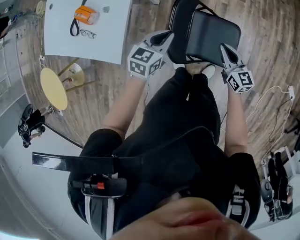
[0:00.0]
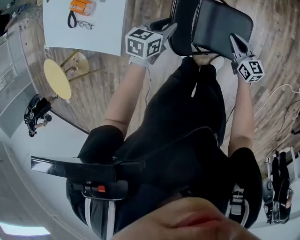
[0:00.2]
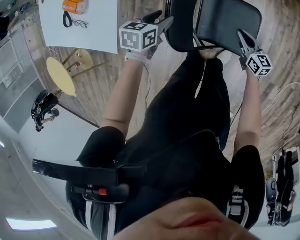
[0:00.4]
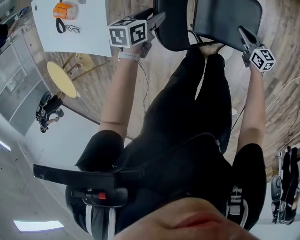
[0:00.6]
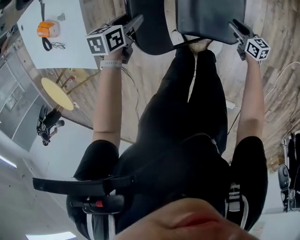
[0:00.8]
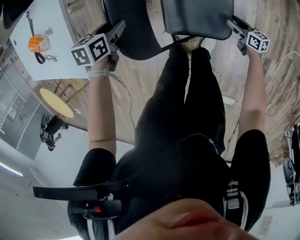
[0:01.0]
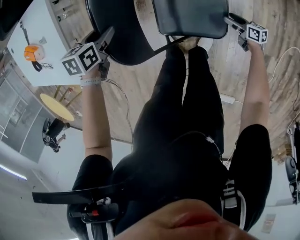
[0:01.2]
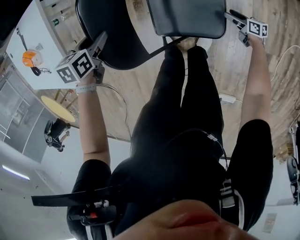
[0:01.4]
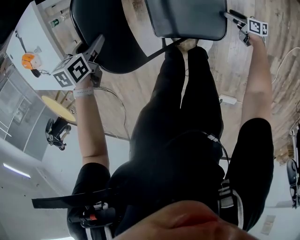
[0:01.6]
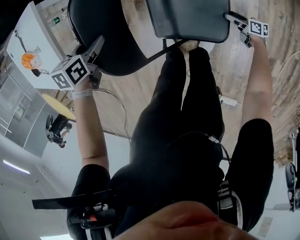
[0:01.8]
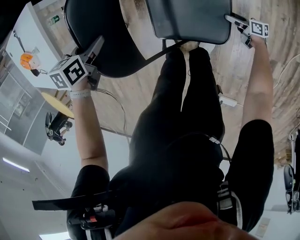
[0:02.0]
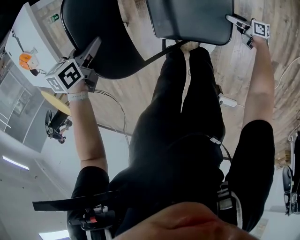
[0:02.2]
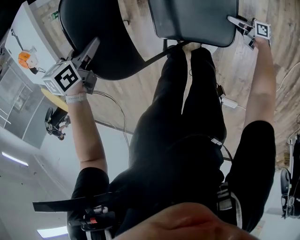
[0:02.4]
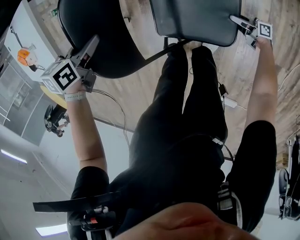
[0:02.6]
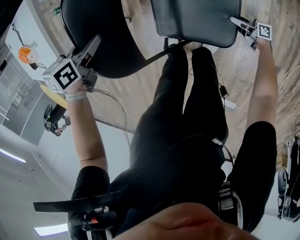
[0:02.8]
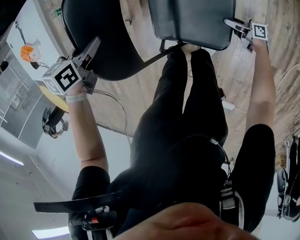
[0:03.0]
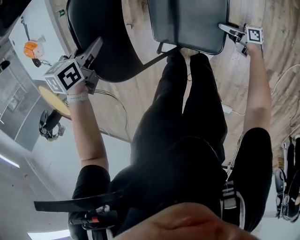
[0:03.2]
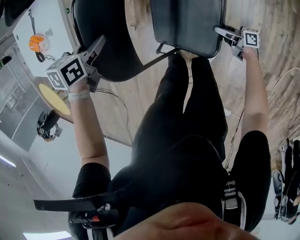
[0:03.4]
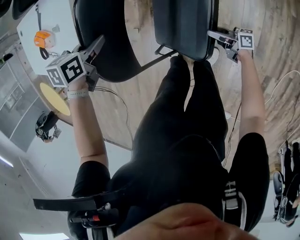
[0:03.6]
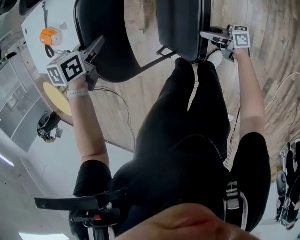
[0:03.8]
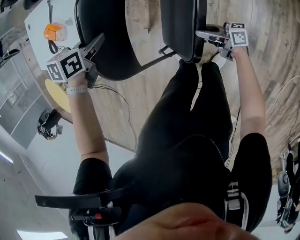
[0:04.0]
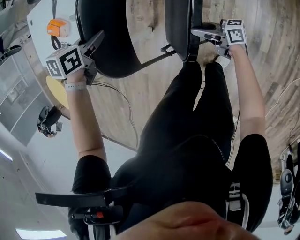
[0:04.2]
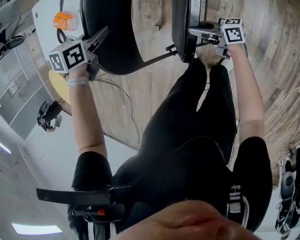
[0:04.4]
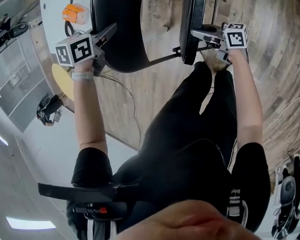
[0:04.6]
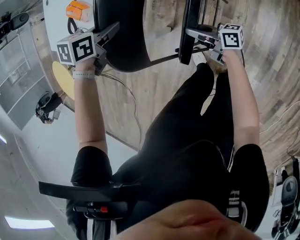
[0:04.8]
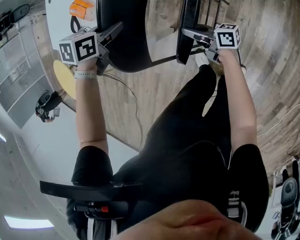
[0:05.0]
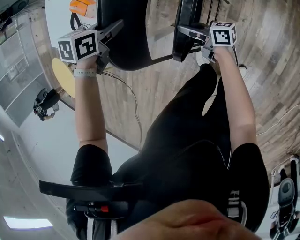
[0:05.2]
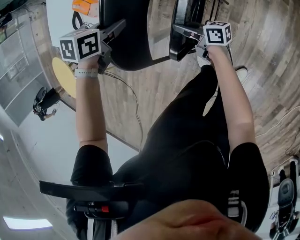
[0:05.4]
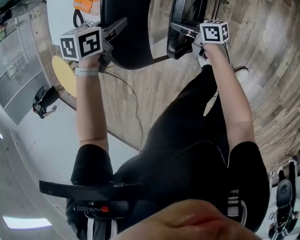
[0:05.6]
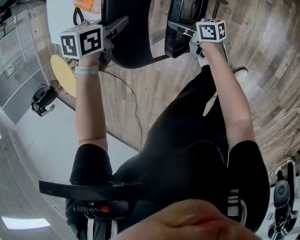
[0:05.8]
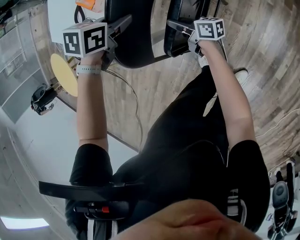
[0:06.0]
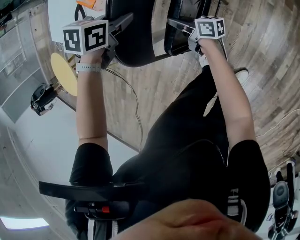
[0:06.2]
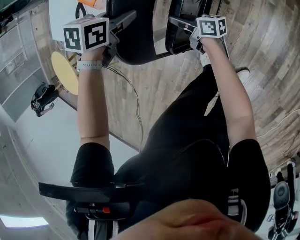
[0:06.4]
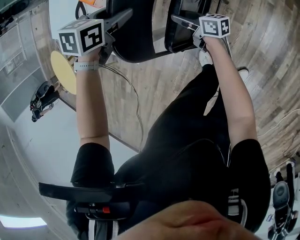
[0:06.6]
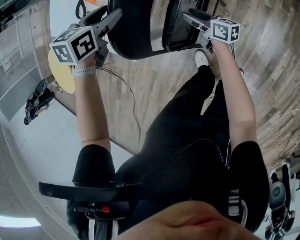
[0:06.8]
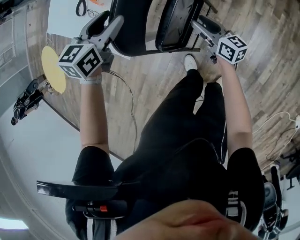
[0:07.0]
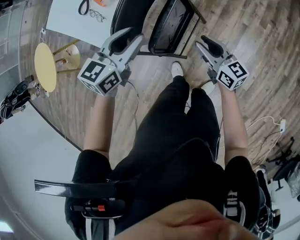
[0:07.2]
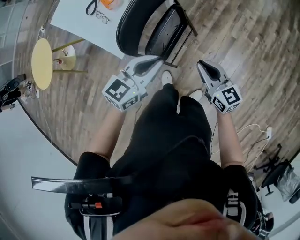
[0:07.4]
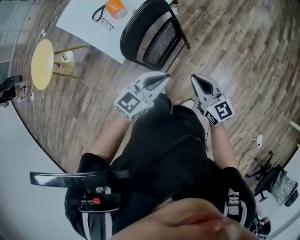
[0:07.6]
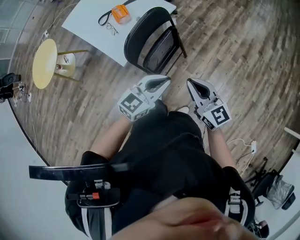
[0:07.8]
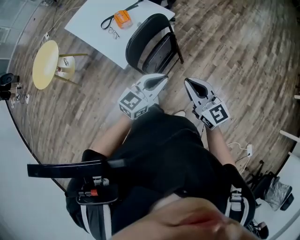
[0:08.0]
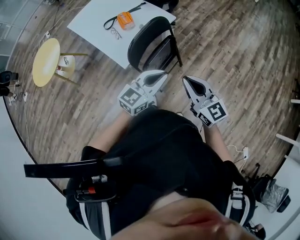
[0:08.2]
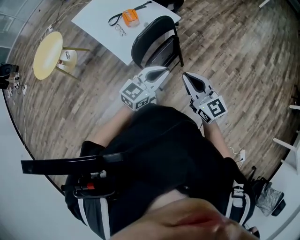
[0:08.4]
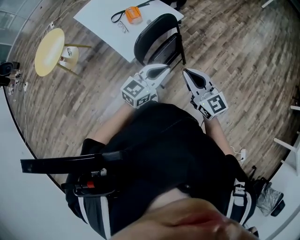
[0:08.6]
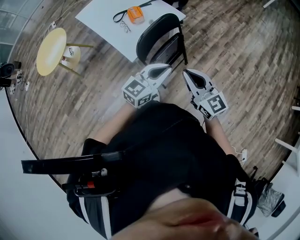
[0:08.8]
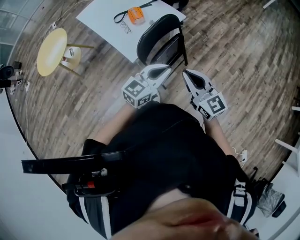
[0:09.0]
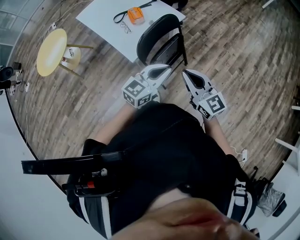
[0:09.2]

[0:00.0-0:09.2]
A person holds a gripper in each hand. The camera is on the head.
0:00.0 to 0:01.6: The right gripper shifts roughly 50 cm downward and to the right, rotates around the line of its fingers by approximately 40 degrees, clockwise from behind, and opens, while the left gripper is displaced downward by about 20 cm, tips its fingers downward by approximately 30 degrees, and opens its fingers.
0:01.6 to 0:03.0: The left gripper closes its fingers. The right gripper travels to the left by approximately 5 cm, and changes its angle by about 30 degrees.
0:03.0 to 0:04.6: The left gripper shifts by approximately 20 cm, while the right gripper ends up some 50 cm from where it was, changes its angle by approximately 20 degrees, and closes up.
0:04.6 to 0:06.2: The left gripper changes place by some 5 cm; the right gripper changes place by some 20 cm.
0:06.2 to 0:07.6: The right gripper goes approximately 40 cm upward, backward and to the right, twists roughly 60 degrees counterclockwise, seen from behind, and opens, then closes again, while the left gripper goes roughly 40 cm backward, upward and to the right, tips its fingers upward by some 50 degrees, and opens, then closes once more.
0:07.6 to 0:09.2: The left gripper is displaced upward by roughly 10 cm; the right gripper travels upward and to the left by roughly 15 cm.

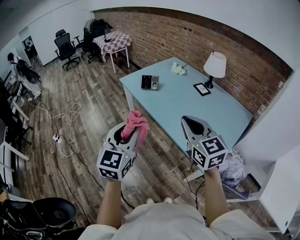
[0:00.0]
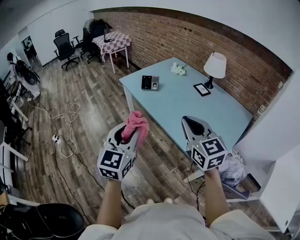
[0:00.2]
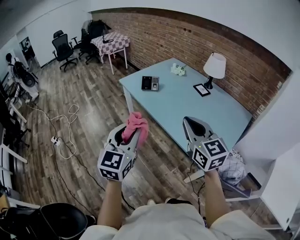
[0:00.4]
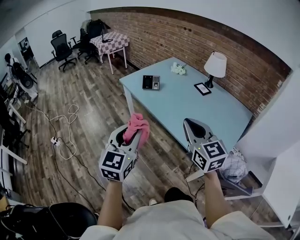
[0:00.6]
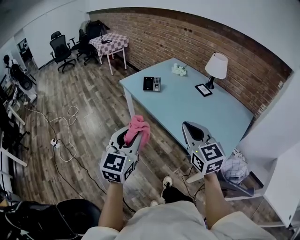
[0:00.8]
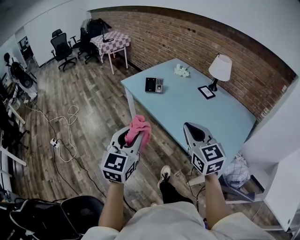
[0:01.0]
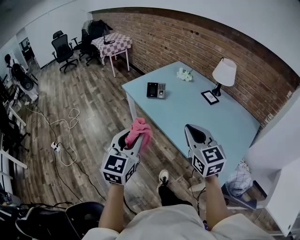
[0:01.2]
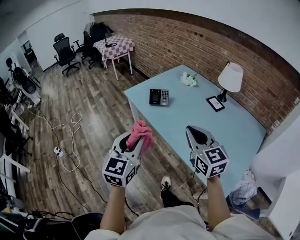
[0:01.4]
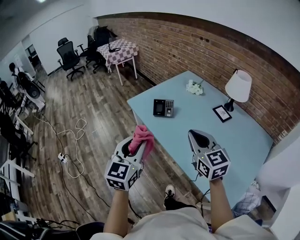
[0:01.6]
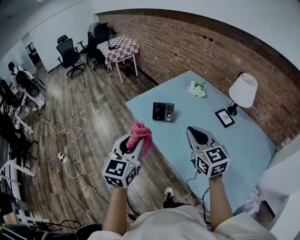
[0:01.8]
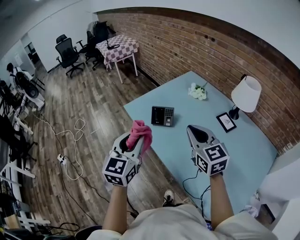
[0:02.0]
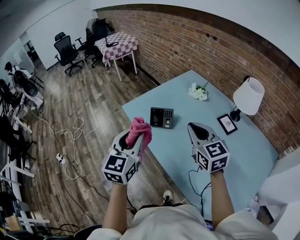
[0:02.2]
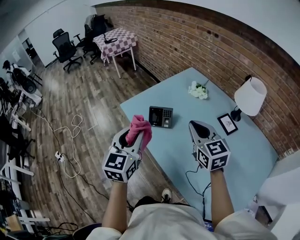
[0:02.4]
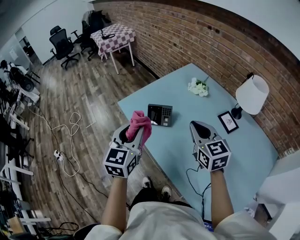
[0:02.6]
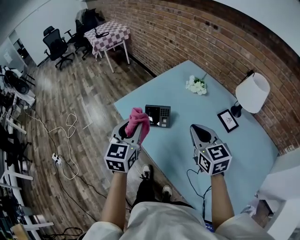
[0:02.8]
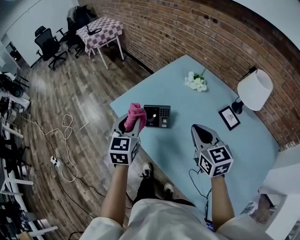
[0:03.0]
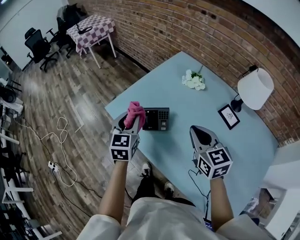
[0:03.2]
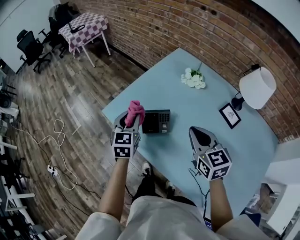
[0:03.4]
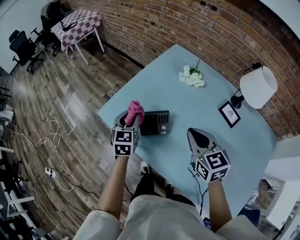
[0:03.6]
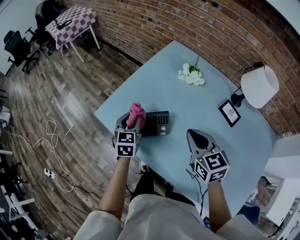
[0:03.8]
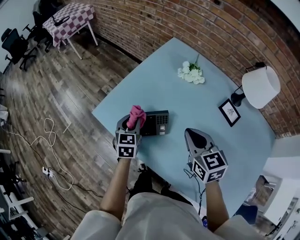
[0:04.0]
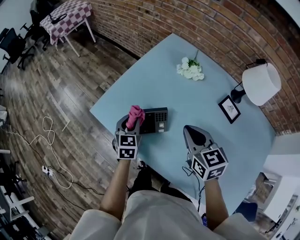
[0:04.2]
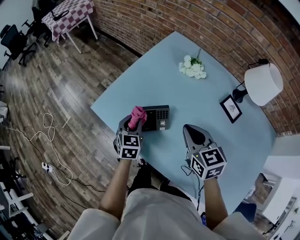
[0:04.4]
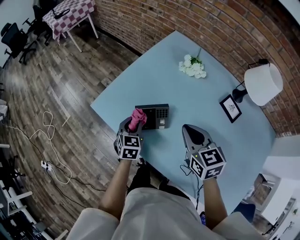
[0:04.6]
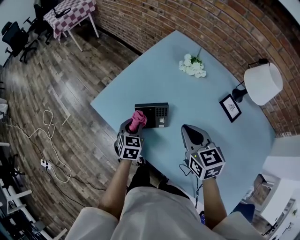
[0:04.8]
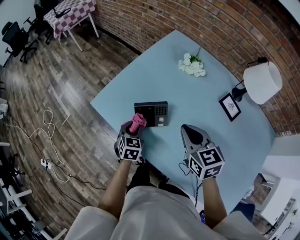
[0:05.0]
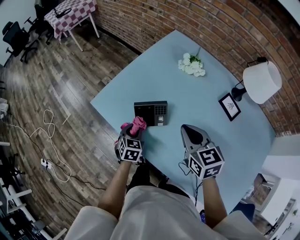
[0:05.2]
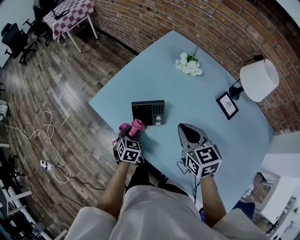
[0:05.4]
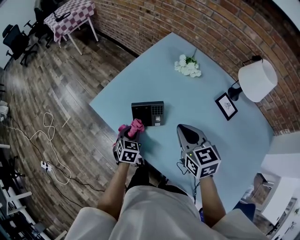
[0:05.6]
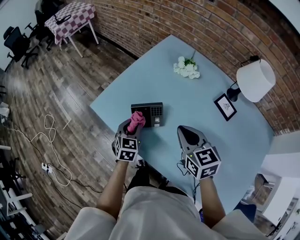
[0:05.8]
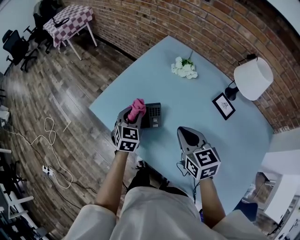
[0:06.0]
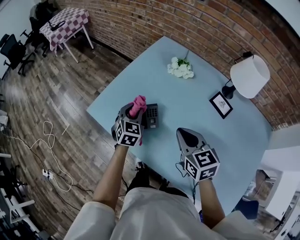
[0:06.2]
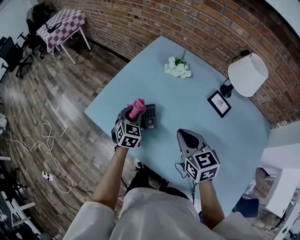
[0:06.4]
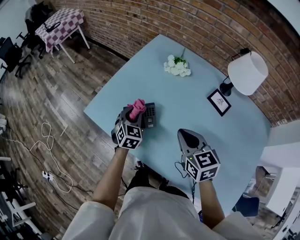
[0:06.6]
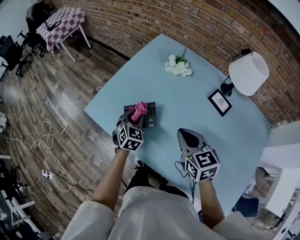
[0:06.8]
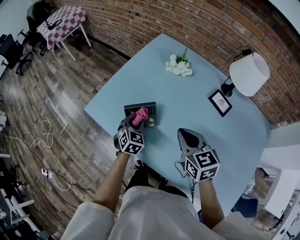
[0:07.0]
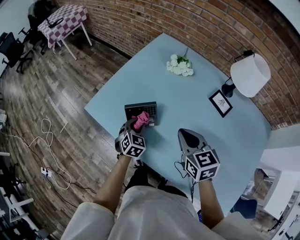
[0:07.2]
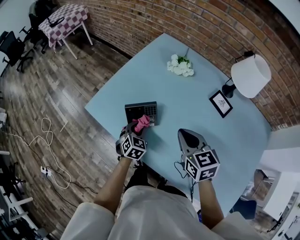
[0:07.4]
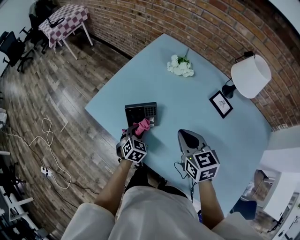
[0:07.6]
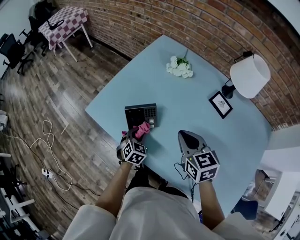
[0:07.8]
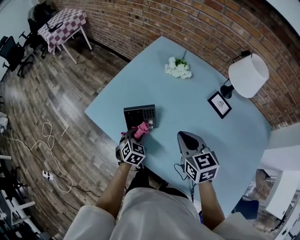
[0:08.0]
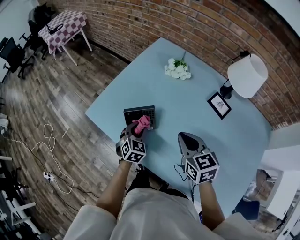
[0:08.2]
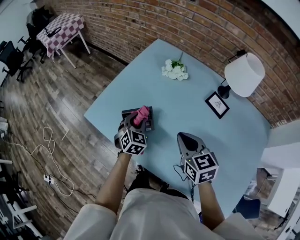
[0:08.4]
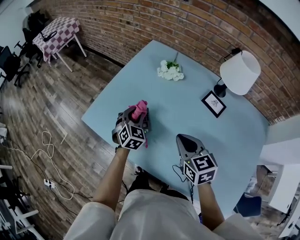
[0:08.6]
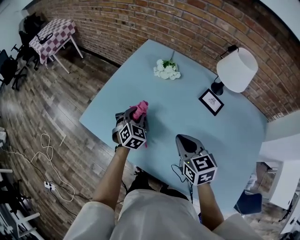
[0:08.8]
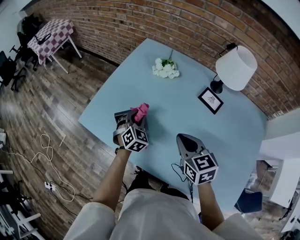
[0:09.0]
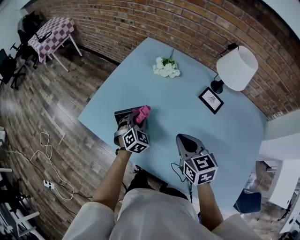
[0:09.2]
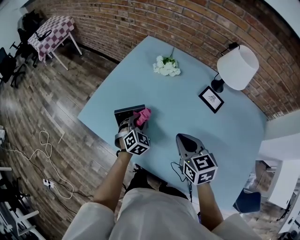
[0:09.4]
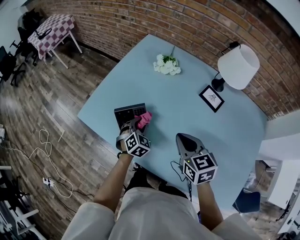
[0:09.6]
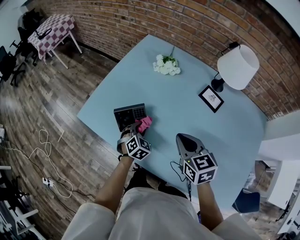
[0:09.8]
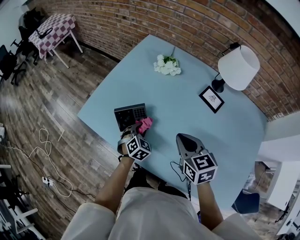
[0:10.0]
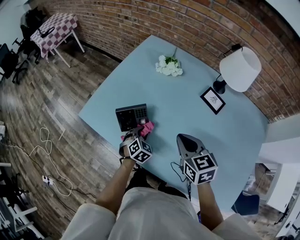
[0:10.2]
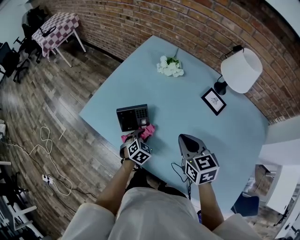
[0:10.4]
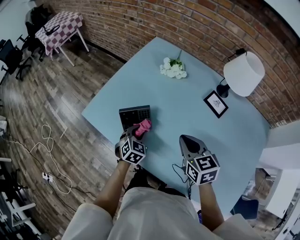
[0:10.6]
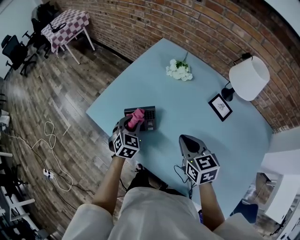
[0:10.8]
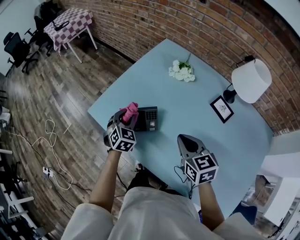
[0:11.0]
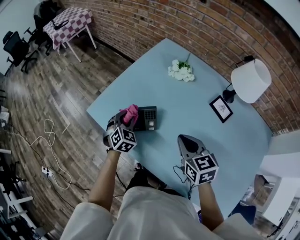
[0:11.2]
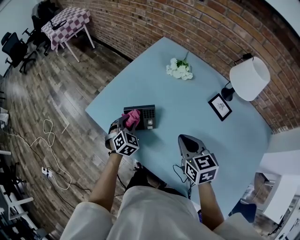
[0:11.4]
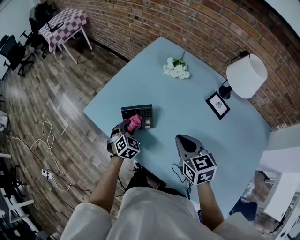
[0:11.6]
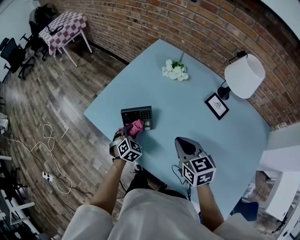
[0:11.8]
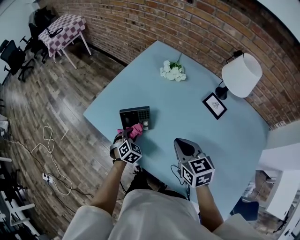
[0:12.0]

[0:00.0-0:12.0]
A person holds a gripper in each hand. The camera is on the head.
0:00.0 to 0:01.6: The two grippers go about 25 cm forward.
0:01.6 to 0:03.0: The grippers both shift forward by approximately 30 cm.
0:03.0 to 0:04.4: The left gripper heads downward and forward, covering roughly 25 cm, and changes its angle by about 20 degrees, while the right gripper is displaced forward and downward by some 10 cm.
0:04.4 to 0:06.0: The left gripper moves upward, roughly 5 cm.
0:06.0 to 0:07.6: The left gripper heads downward and backward, covering about 15 cm.
0:07.6 to 0:09.0: The left gripper goes about 15 cm upward, forward and to the right.
0:09.0 to 0:10.4: The left gripper is displaced downward and backward by about 15 cm.
0:10.4 to 0:12.0: The left gripper moves to the left, some 5 cm.

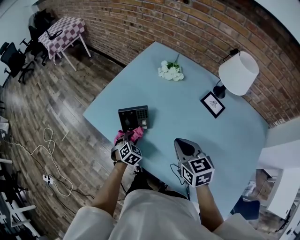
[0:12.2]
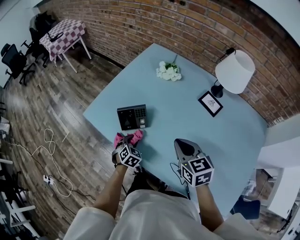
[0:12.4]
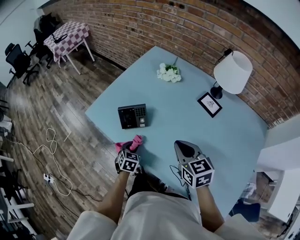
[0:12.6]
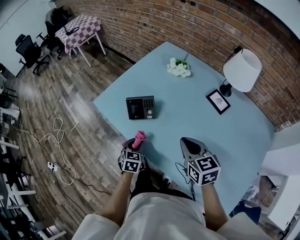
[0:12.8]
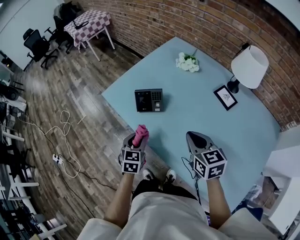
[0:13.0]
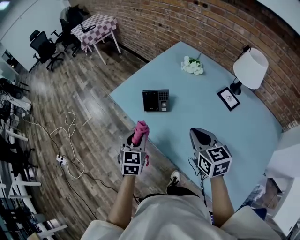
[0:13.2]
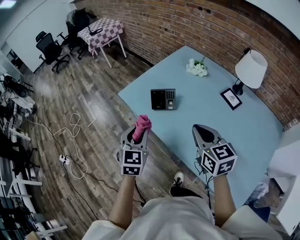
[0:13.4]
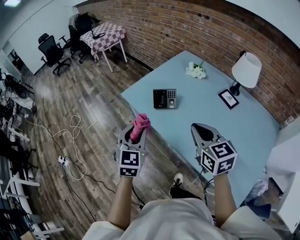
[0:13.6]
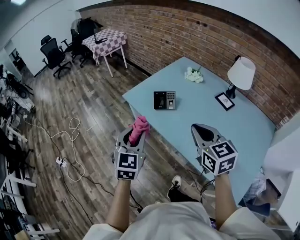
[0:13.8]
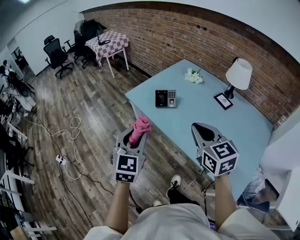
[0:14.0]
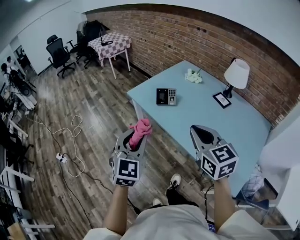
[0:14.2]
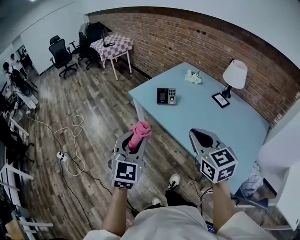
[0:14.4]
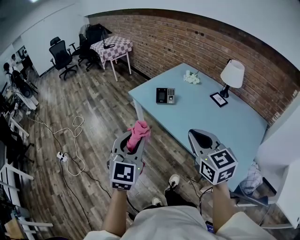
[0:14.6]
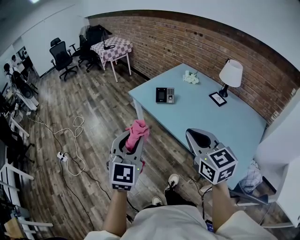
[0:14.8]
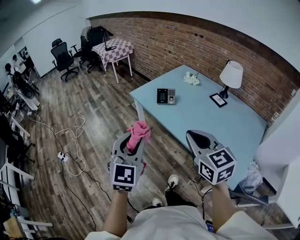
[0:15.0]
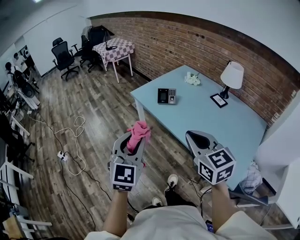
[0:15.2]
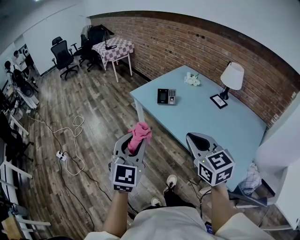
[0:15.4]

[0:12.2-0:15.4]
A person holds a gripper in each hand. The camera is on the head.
0:12.2 to 0:13.8: The right gripper travels backward and upward by approximately 25 cm. The left gripper moves upward and backward, approximately 40 cm, and tips its fingers upward by some 40 degrees.
0:13.8 to 0:15.4: Both grippers move backward, roughly 20 cm.
